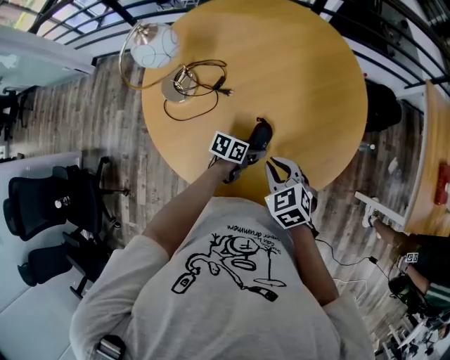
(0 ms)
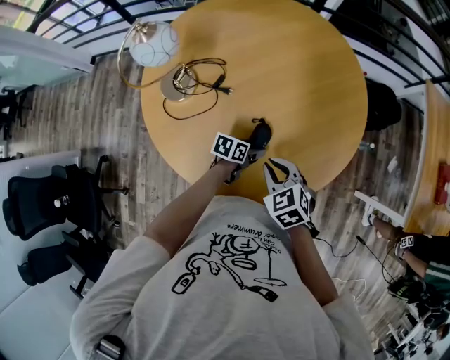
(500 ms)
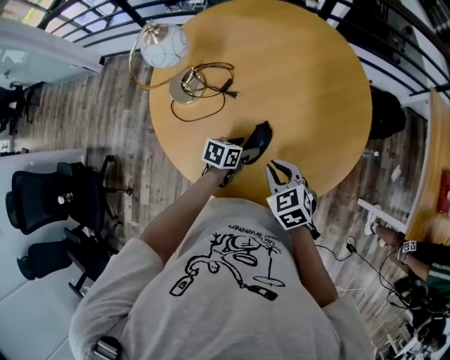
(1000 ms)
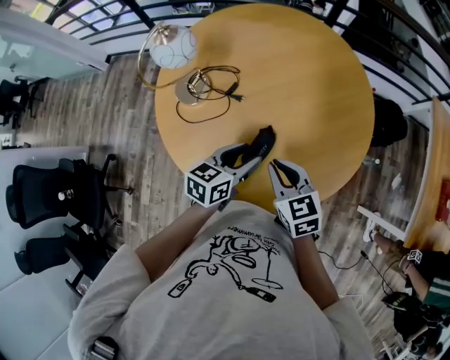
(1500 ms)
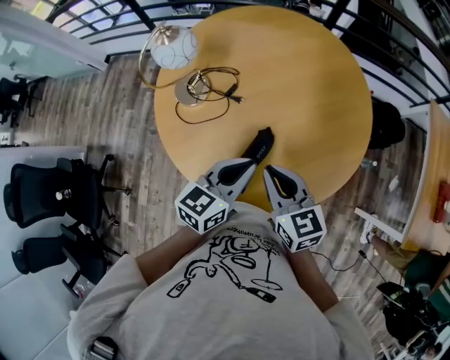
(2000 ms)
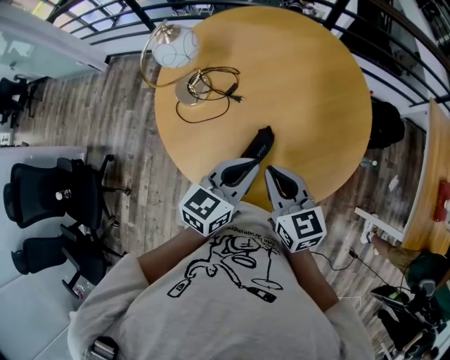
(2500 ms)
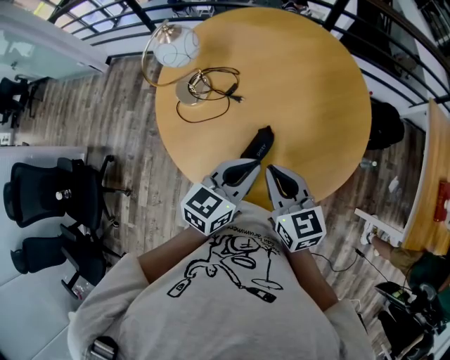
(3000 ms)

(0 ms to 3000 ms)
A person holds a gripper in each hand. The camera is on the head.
0 ms - 1500 ms: The left gripper moves upward, some 20 cm, and changes its angle by some 30 degrees, while the right gripper is displaced upward by approximately 5 cm.
1500 ms - 3000 ms: The grippers both shift upward by about 5 cm. The left gripper closes up.

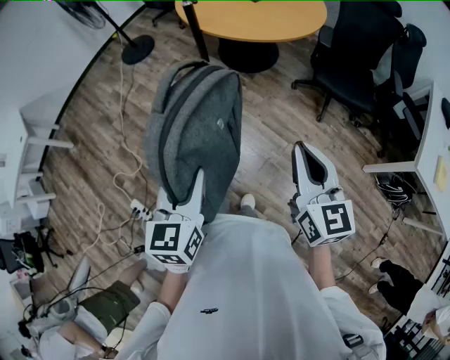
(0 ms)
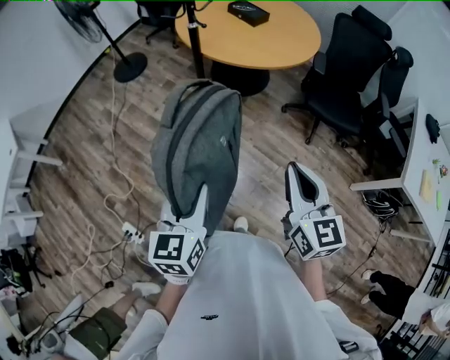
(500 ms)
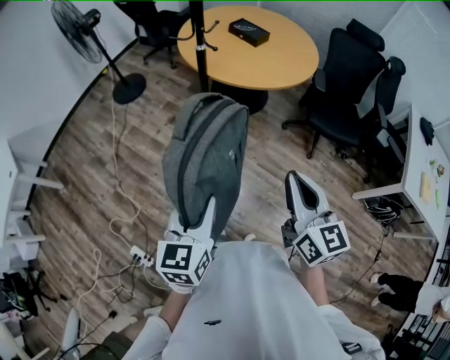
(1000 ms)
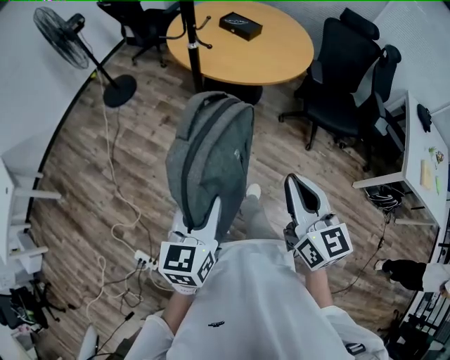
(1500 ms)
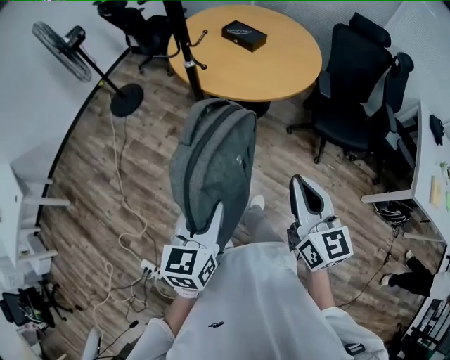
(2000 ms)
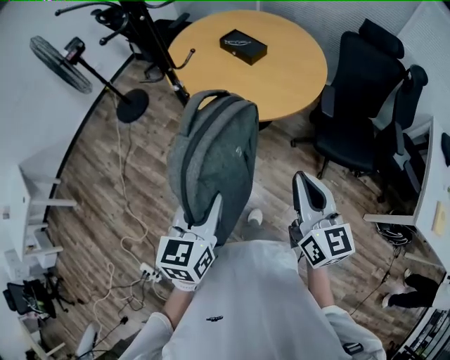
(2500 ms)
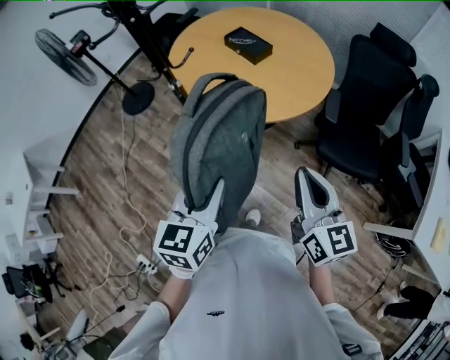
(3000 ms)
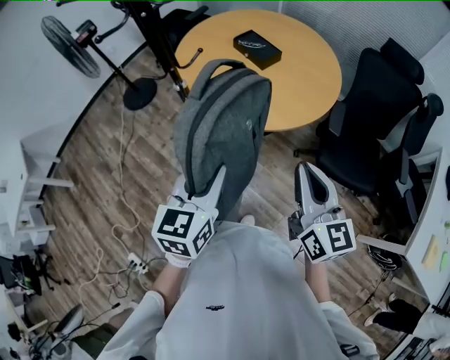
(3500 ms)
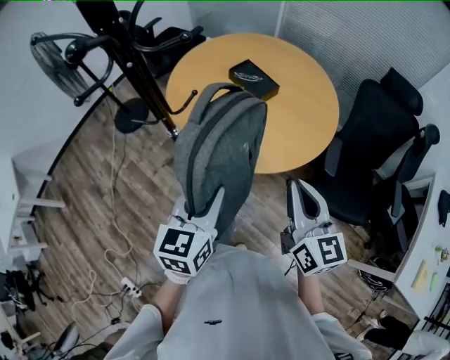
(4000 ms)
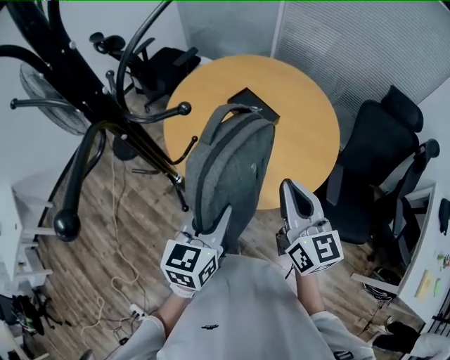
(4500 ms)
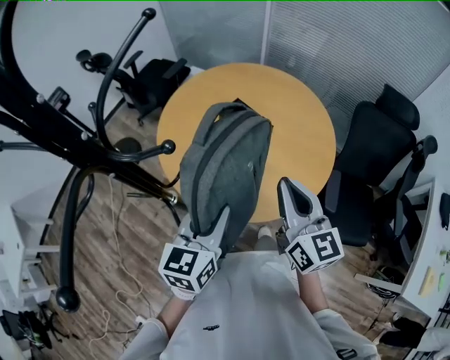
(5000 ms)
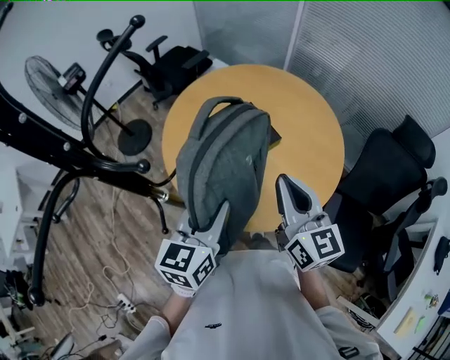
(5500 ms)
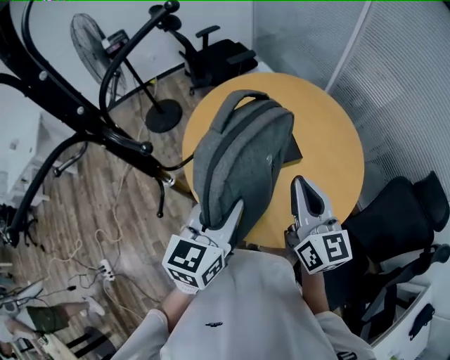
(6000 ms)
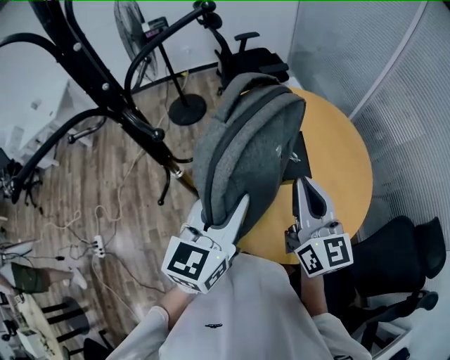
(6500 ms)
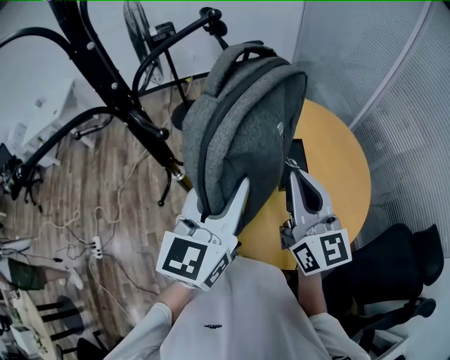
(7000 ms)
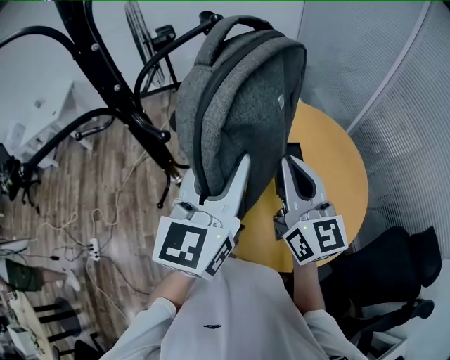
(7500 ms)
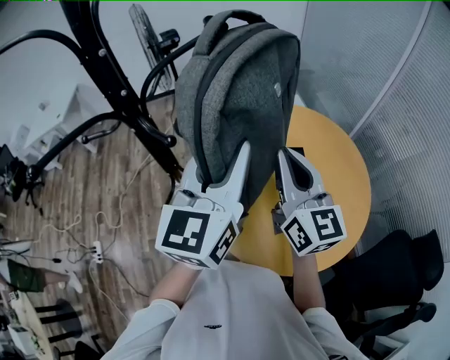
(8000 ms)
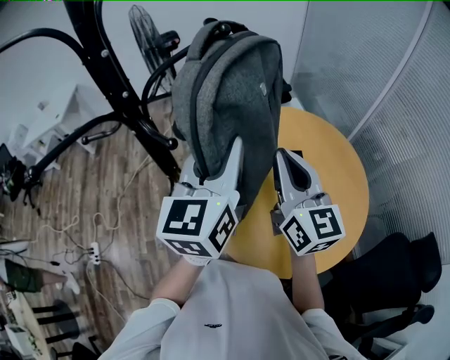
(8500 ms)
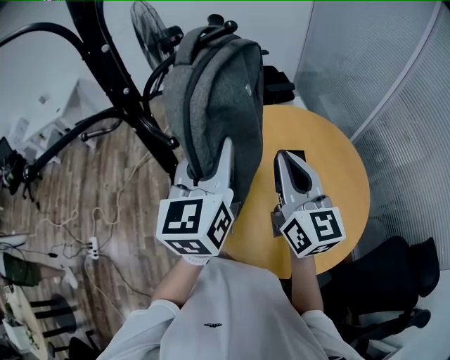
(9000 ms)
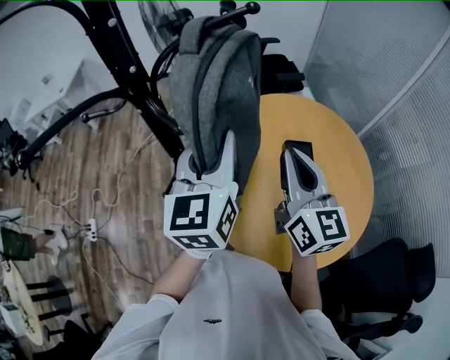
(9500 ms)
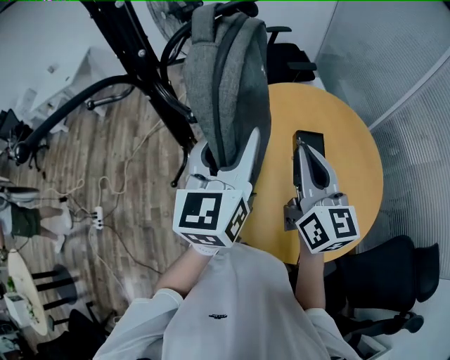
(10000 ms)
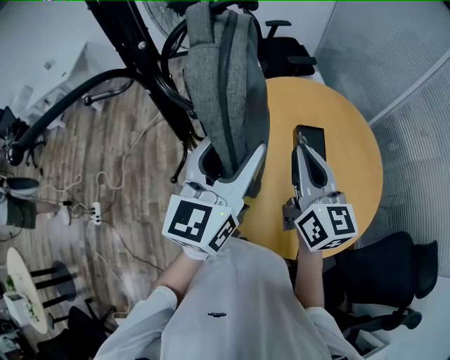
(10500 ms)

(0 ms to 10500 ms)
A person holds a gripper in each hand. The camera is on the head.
0 ms - 2000 ms: The left gripper heads forward, covering roughly 20 cm. The right gripper shifts about 20 cm forward and to the left.
2000 ms - 4000 ms: Both grippers travel together forward, some 35 cm.
4000 ms - 6500 ms: The right gripper shifts by some 30 cm, and swivels approximately 30 degrees. The left gripper ends up approximately 25 cm from where it was, and swivels about 30 degrees.
6500 ms - 8500 ms: The left gripper shifts roughly 15 cm upward and forward; the right gripper heads upward, forward and to the left, covering some 10 cm.
8500 ms - 10500 ms: Both grippers move downward, roughly 5 cm. The left gripper opens its fingers.

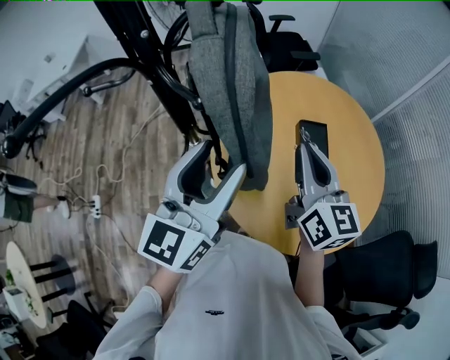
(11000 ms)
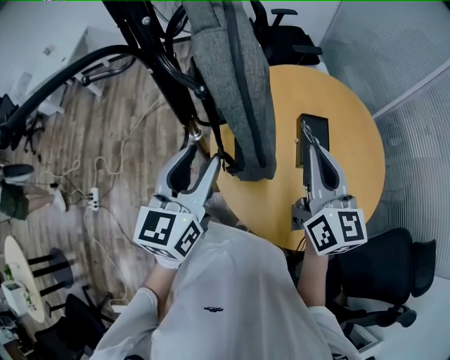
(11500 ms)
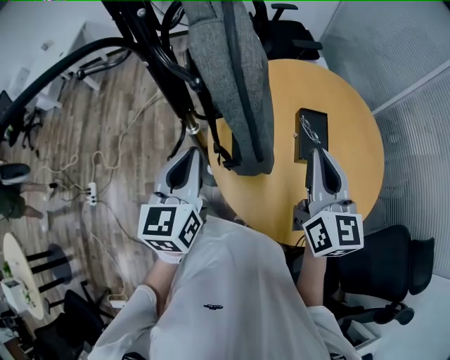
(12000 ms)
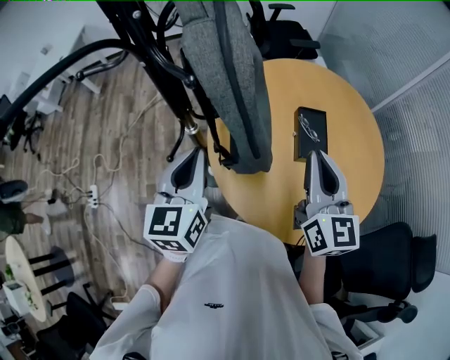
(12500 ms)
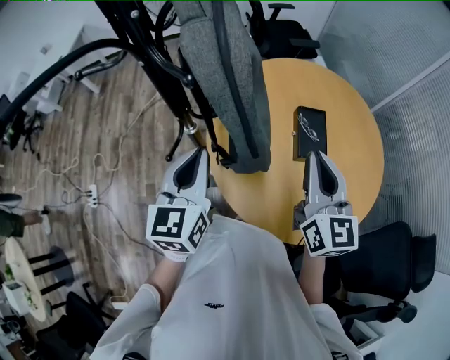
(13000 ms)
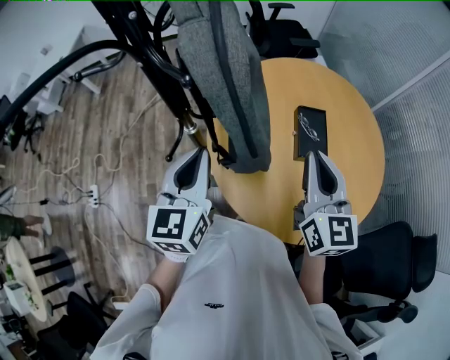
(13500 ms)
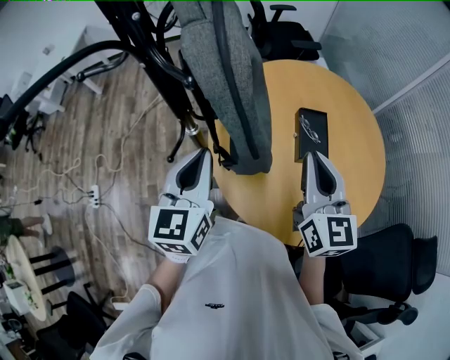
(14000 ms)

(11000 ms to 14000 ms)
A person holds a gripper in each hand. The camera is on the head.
11000 ms - 12500 ms: The left gripper travels downward and to the left by some 10 cm, swivels roughly 20 degrees, and closes. The right gripper ends up approximately 5 cm from where it was.
12500 ms - 14000 ms: The grippers move only a little.

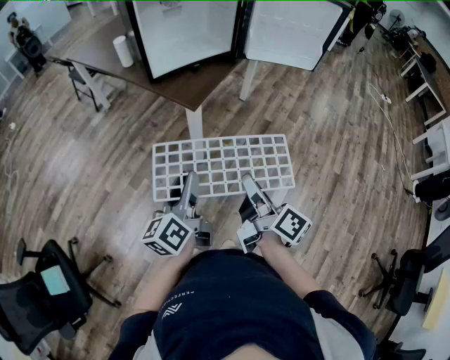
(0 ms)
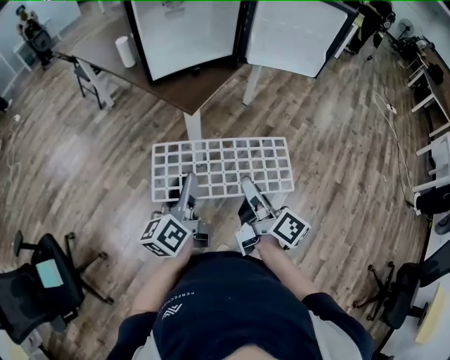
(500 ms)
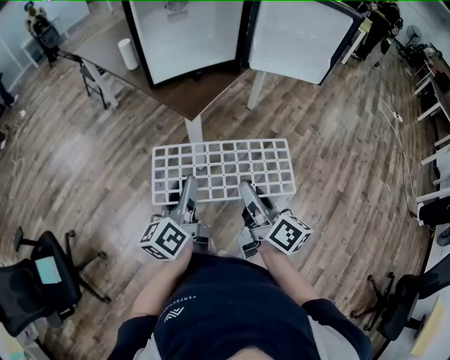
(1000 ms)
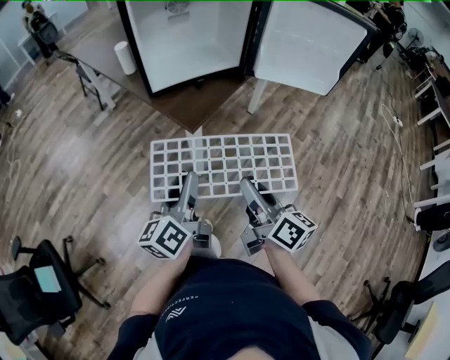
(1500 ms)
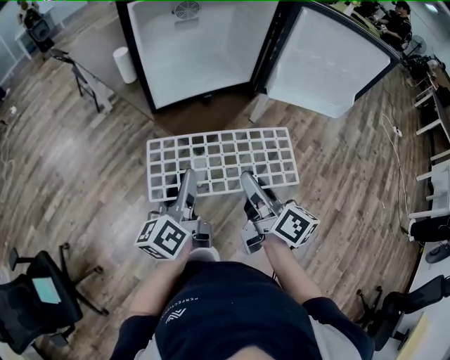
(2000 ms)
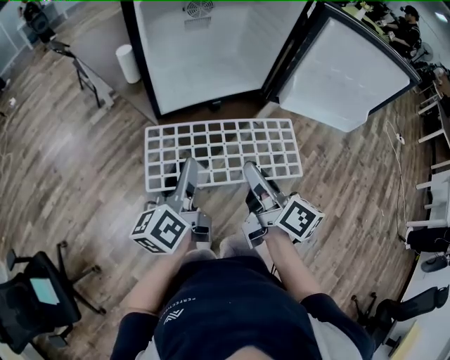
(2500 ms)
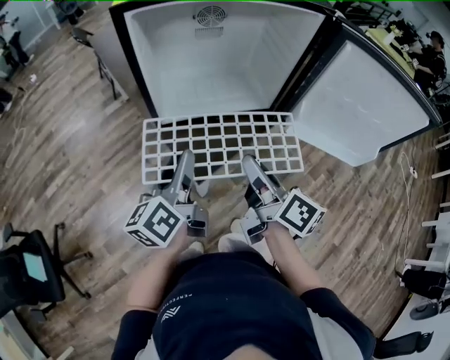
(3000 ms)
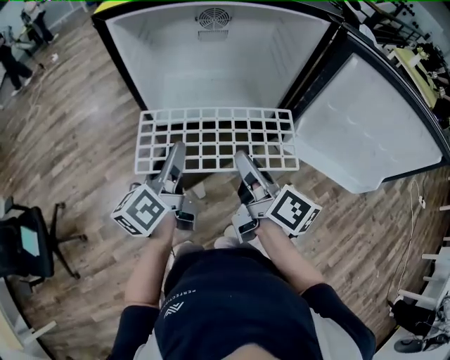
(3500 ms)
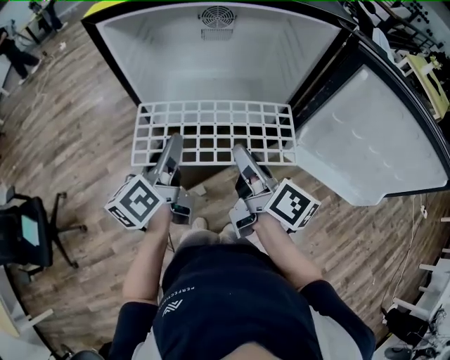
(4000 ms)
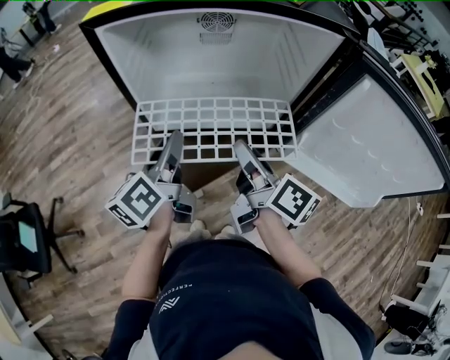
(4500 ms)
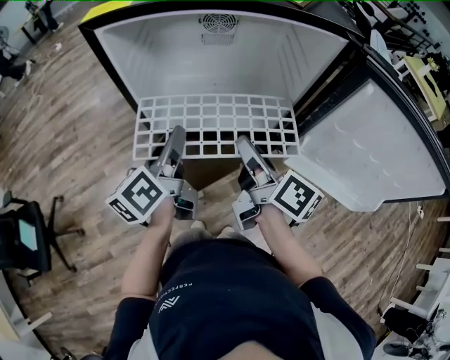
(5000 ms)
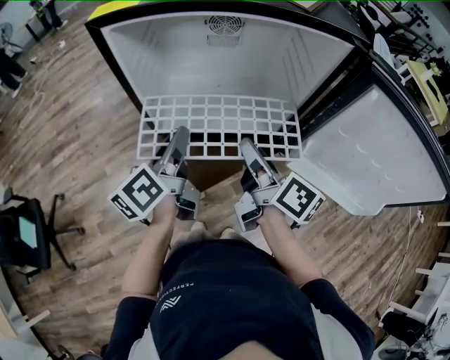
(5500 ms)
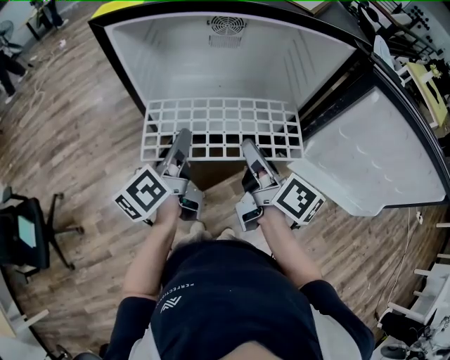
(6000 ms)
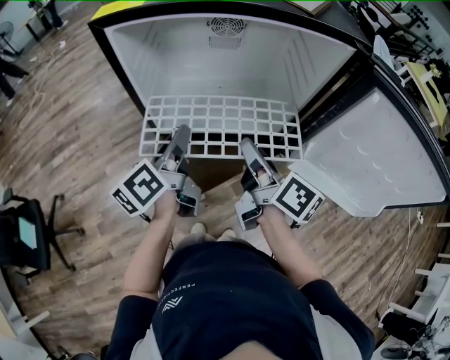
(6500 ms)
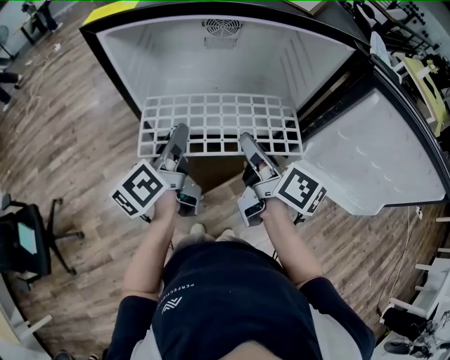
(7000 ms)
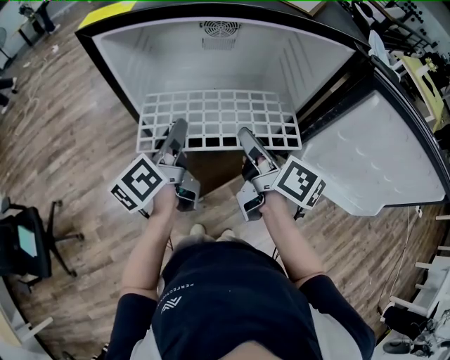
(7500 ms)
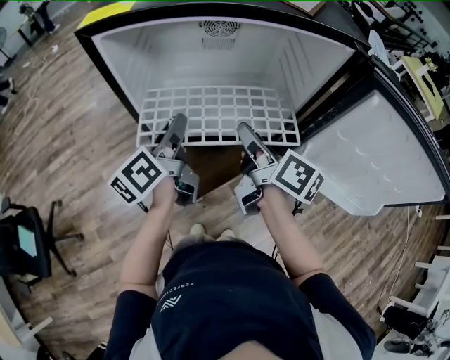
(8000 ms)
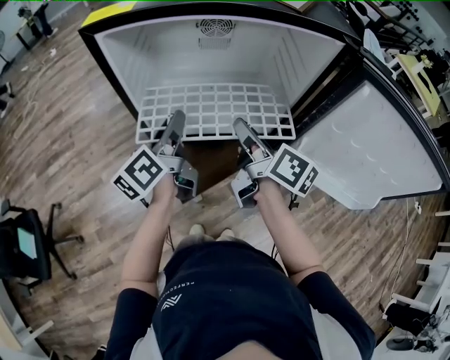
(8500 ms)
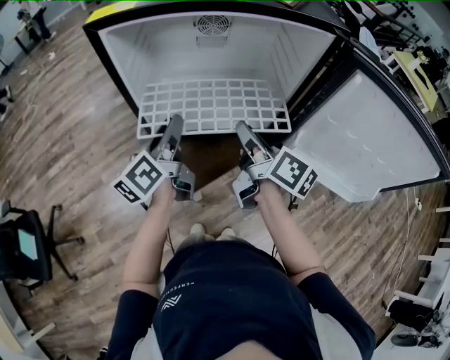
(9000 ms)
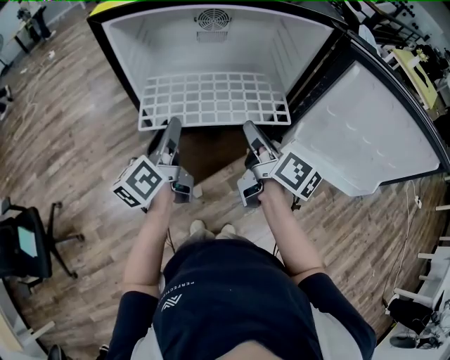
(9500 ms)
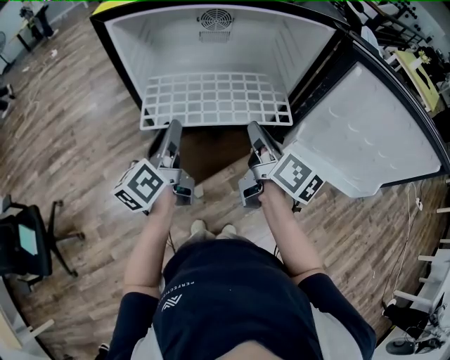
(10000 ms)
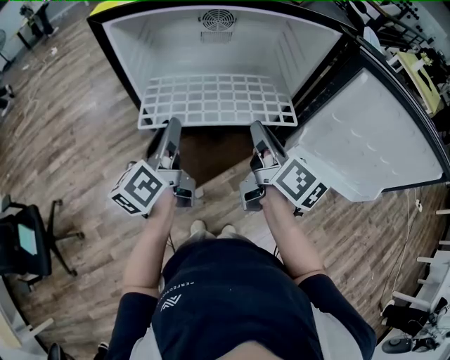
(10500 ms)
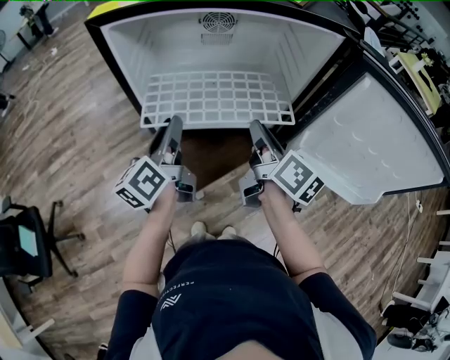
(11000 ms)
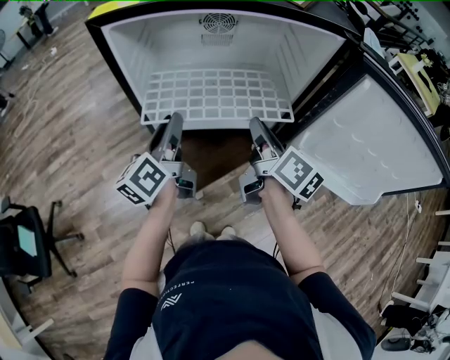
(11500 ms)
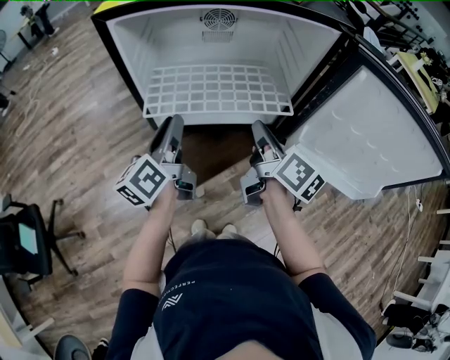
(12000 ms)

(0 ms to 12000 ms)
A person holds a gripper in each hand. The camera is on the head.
0 ms - 2000 ms: The two grippers go some 20 cm forward.
2000 ms - 4000 ms: The two grippers go approximately 20 cm forward. The right gripper turns by roughly 20 degrees.
4000 ms - 6000 ms: The grippers make only small movements.
6000 ms - 8000 ms: The left gripper moves forward, roughly 5 cm.
8000 ms - 10000 ms: The left gripper is displaced backward by about 5 cm. The right gripper changes place by about 5 cm.
10000 ms - 12000 ms: The grippers make only small movements.
